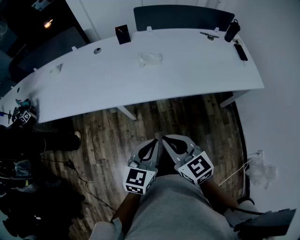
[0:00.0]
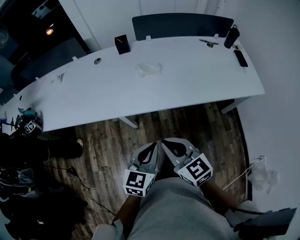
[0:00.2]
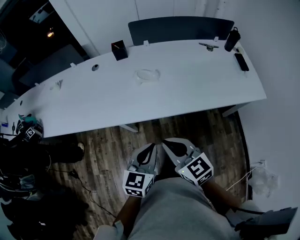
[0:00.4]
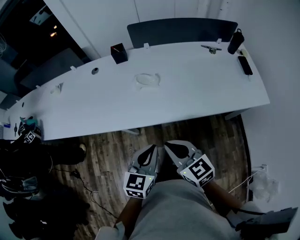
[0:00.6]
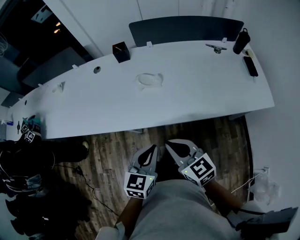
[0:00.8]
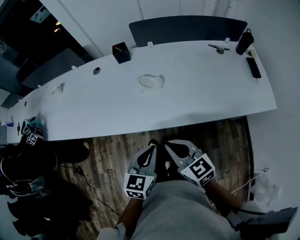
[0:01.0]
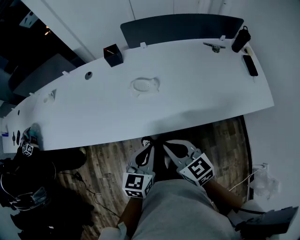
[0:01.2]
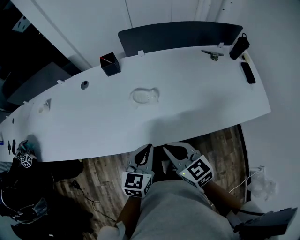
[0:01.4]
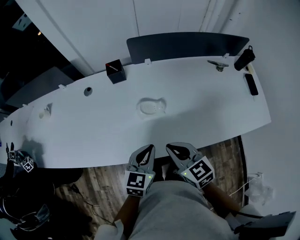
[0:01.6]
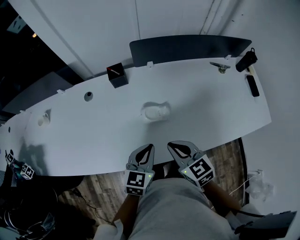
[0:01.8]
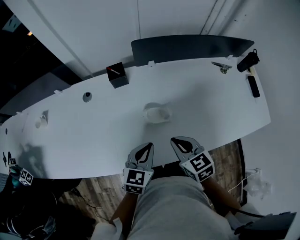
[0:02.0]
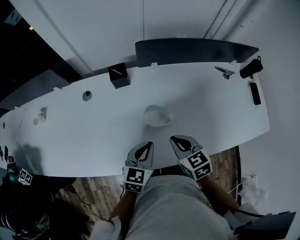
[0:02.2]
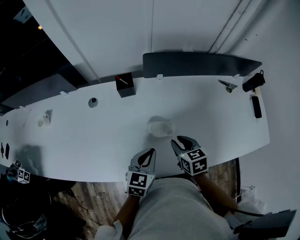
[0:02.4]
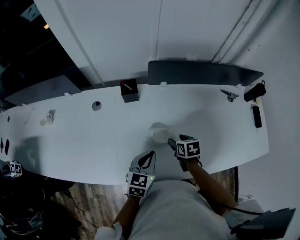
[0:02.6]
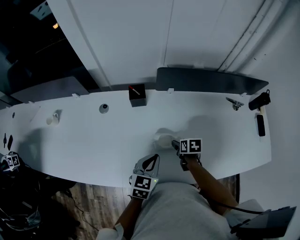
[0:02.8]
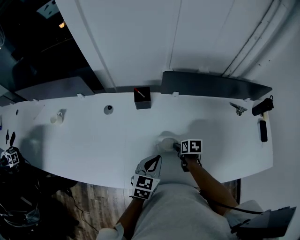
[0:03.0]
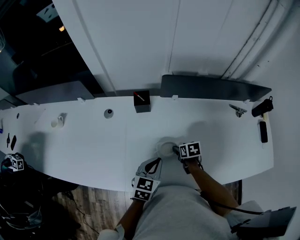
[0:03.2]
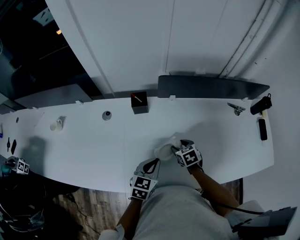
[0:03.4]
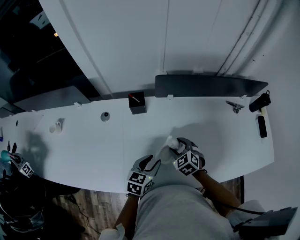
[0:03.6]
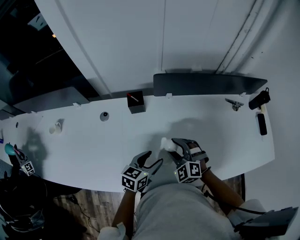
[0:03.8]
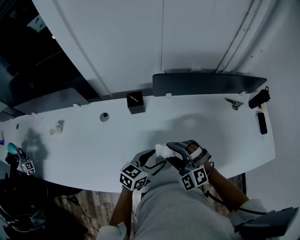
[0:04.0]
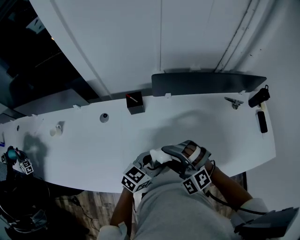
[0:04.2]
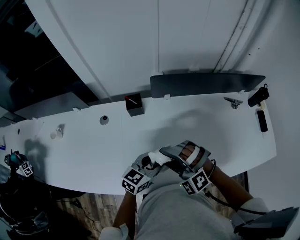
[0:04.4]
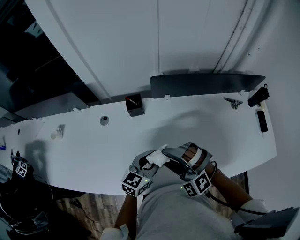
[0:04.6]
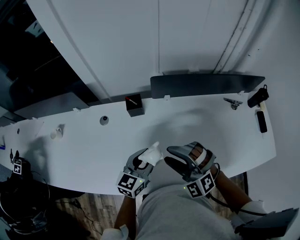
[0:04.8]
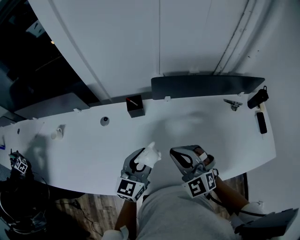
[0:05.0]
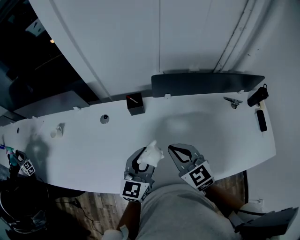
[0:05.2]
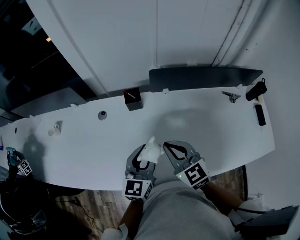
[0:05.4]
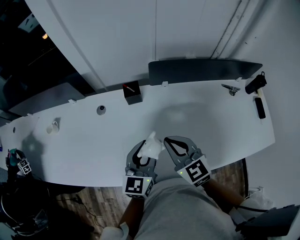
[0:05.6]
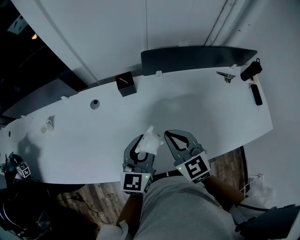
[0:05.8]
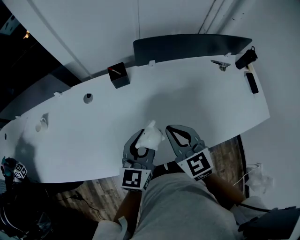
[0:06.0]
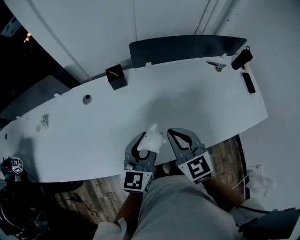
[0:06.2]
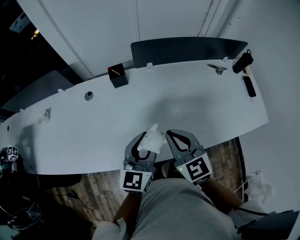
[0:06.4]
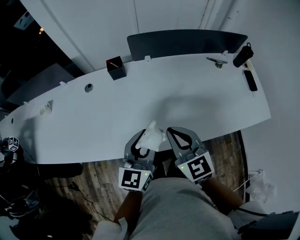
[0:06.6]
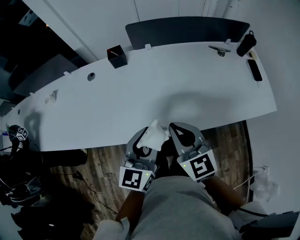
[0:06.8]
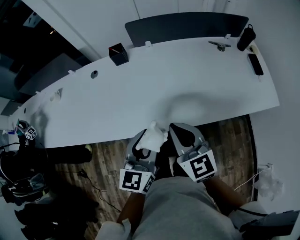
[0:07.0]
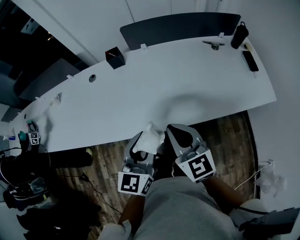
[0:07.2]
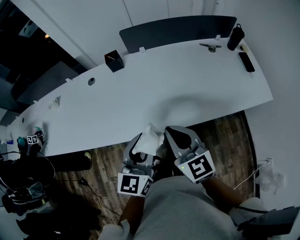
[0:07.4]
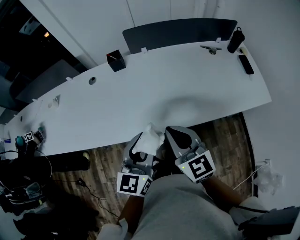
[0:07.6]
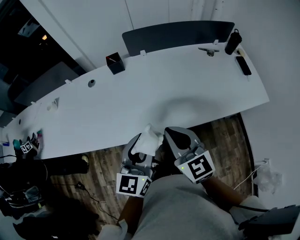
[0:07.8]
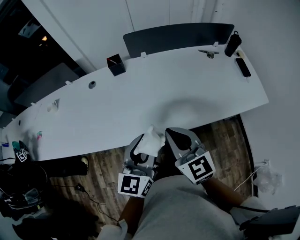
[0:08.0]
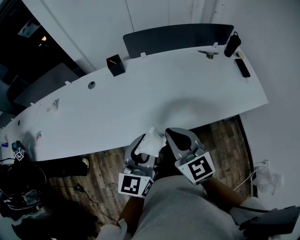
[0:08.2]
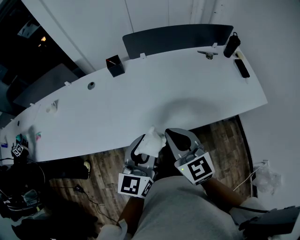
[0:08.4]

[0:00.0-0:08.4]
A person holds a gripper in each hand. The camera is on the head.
0:00.0 to 0:01.4: Both grippers travel together forward, some 25 cm.
0:01.4 to 0:02.8: The left gripper shifts roughly 20 cm forward. Meanwhile the right gripper heads forward and downward, covering roughly 30 cm, points its fingers approximately 40 degrees further downward, and opens up.
0:02.8 to 0:04.2: The left gripper changes its angle by roughly 30 degrees, and opens. The right gripper travels upward and to the left by roughly 25 cm, and twists approximately 100 degrees counterclockwise, seen from behind.
0:04.2 to 0:05.6: The right gripper twists some 60 degrees clockwise, seen from behind, and closes up; the left gripper shifts approximately 10 cm upward and to the left, and turns by about 40 degrees.
0:05.6 to 0:07.0: The grippers both shift backward and to the right by approximately 25 cm.
0:07.0 to 0:08.4: The right gripper ends up about 5 cm from where it was.

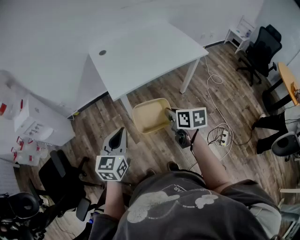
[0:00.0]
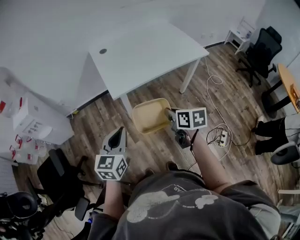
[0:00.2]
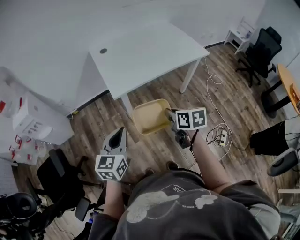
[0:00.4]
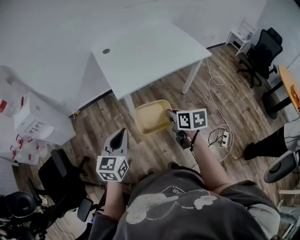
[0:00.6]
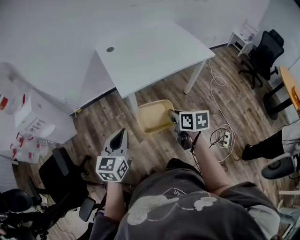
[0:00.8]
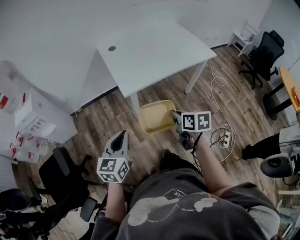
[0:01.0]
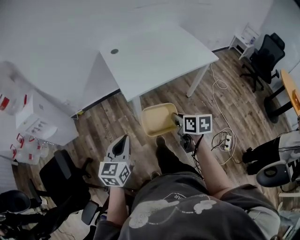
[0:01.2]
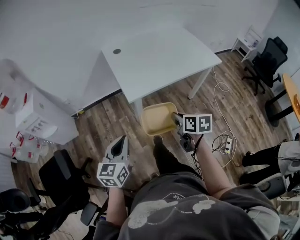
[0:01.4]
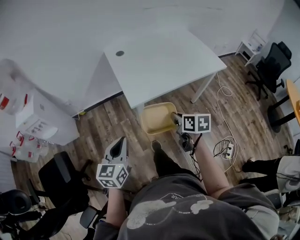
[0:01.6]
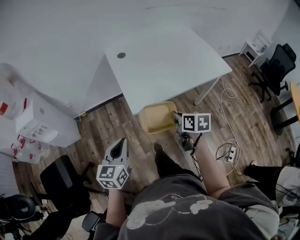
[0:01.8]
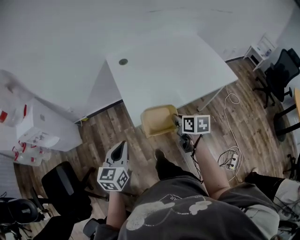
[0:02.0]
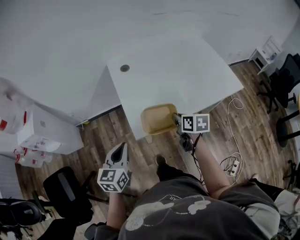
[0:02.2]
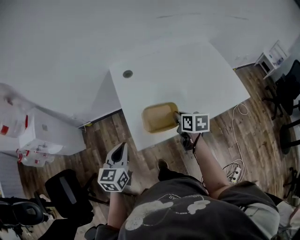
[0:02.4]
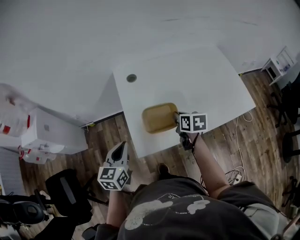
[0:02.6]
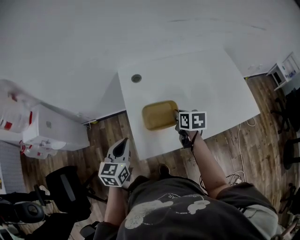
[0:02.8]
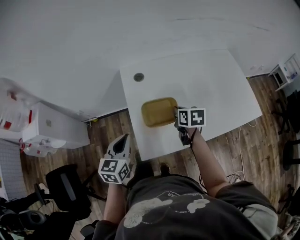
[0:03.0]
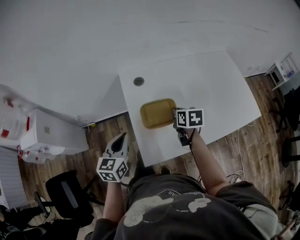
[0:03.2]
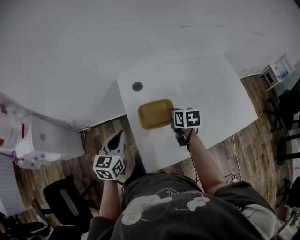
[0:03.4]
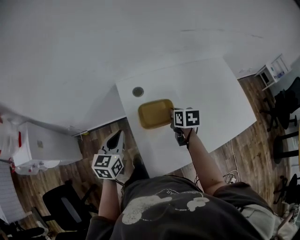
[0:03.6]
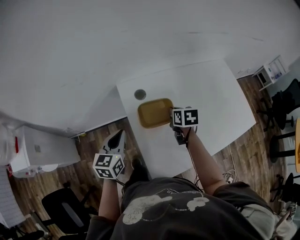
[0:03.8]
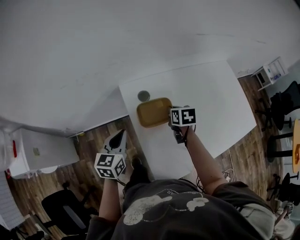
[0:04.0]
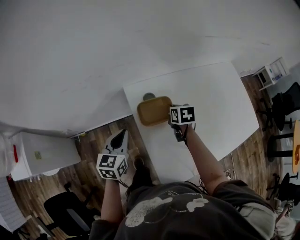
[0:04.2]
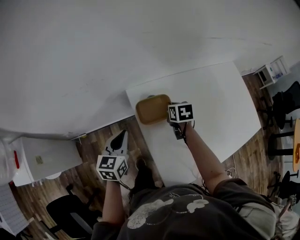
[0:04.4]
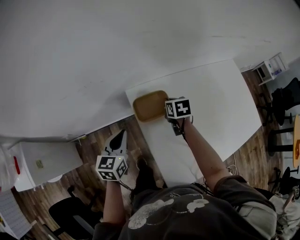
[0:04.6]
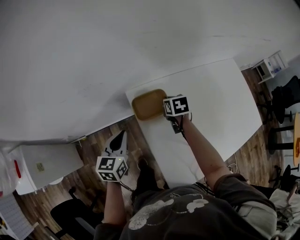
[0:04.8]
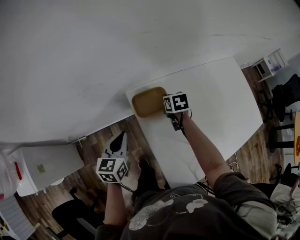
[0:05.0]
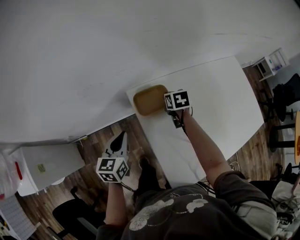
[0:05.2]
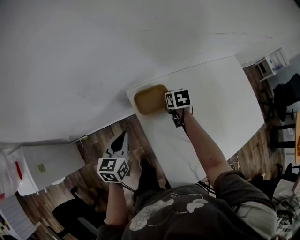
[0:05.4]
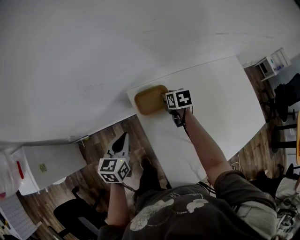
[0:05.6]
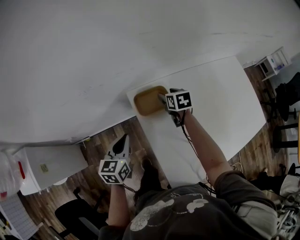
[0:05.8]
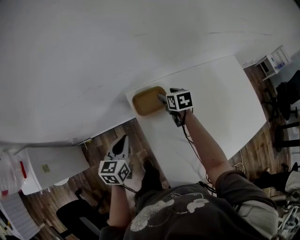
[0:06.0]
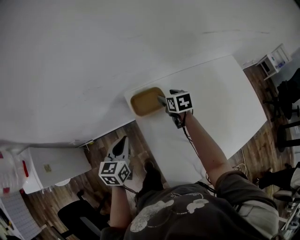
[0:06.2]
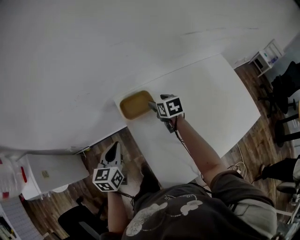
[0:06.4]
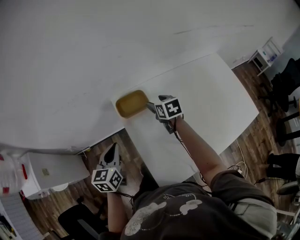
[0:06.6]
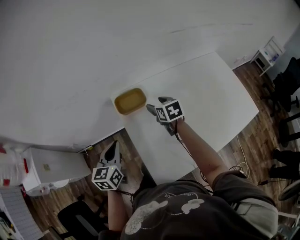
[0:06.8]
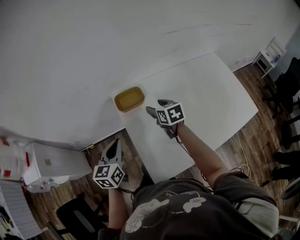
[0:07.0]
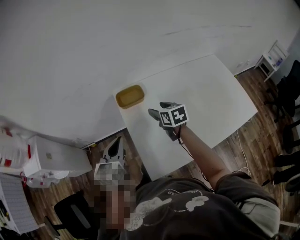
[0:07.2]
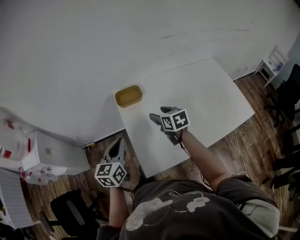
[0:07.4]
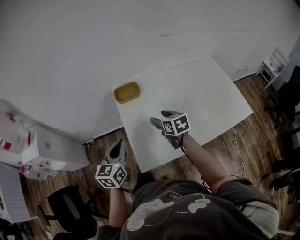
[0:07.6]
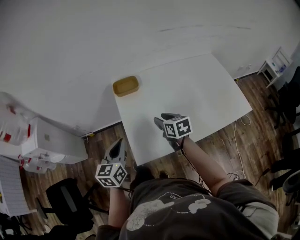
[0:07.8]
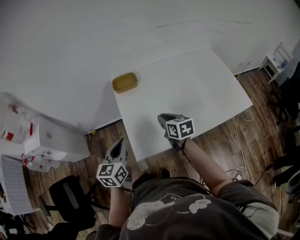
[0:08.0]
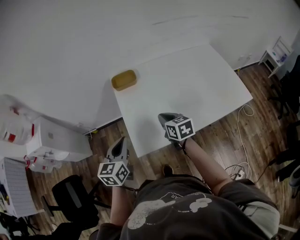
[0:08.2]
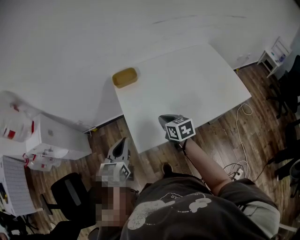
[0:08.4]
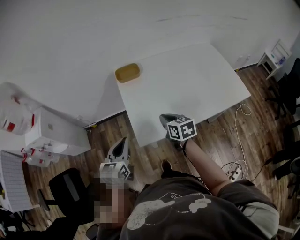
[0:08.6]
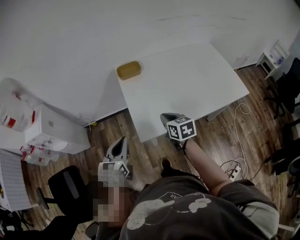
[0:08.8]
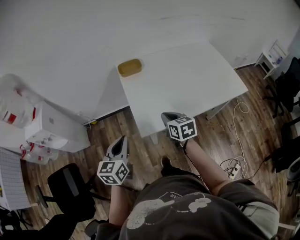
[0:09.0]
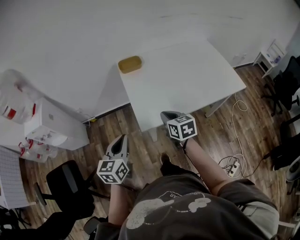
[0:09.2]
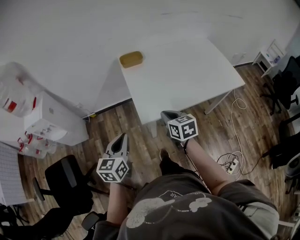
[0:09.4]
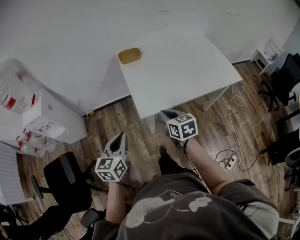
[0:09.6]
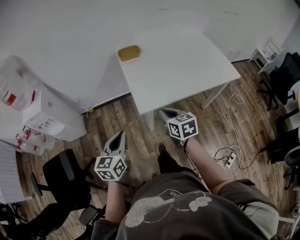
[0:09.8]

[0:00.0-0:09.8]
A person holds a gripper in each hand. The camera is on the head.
0:00.0 to 0:01.4: The grippers both shift to the left by roughly 10 cm.
0:01.4 to 0:02.8: The two grippers go about 40 cm forward.
0:02.8 to 0:04.2: The two grippers go some 30 cm forward and to the left.
0:04.2 to 0:05.6: The right gripper moves forward and to the left, about 10 cm, and opens its fingers, while the left gripper ends up about 5 cm from where it was.
0:05.6 to 0:07.0: The grippers both shift backward, upward and to the right by about 20 cm. The right gripper opens.
0:07.0 to 0:08.4: The grippers both shift backward by some 25 cm. The right gripper closes its fingers.
0:08.4 to 0:09.8: The left gripper travels backward and to the left by approximately 20 cm, while the right gripper travels backward by about 20 cm.

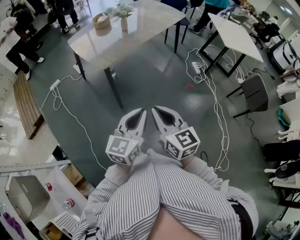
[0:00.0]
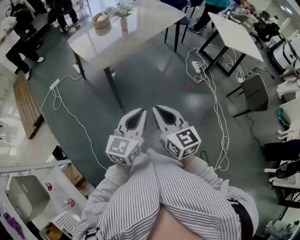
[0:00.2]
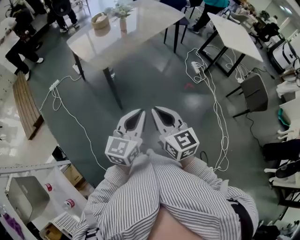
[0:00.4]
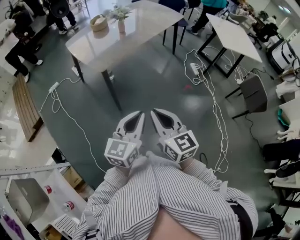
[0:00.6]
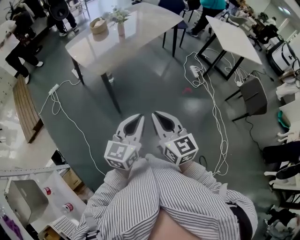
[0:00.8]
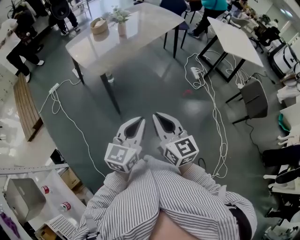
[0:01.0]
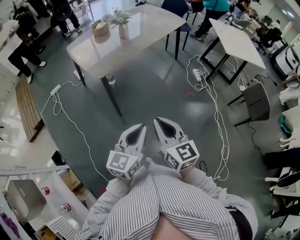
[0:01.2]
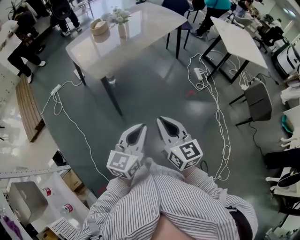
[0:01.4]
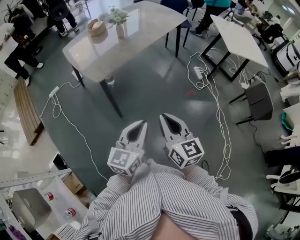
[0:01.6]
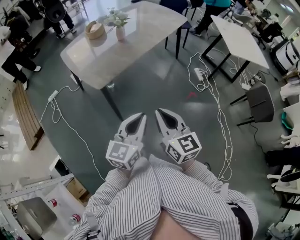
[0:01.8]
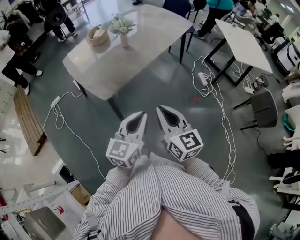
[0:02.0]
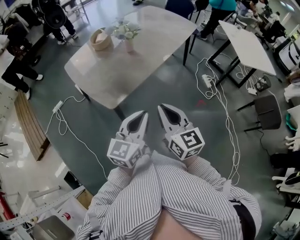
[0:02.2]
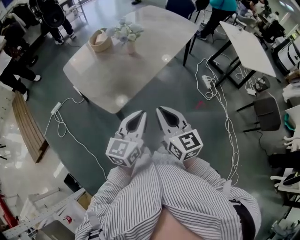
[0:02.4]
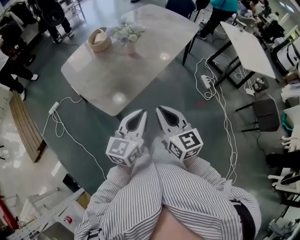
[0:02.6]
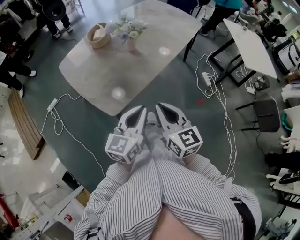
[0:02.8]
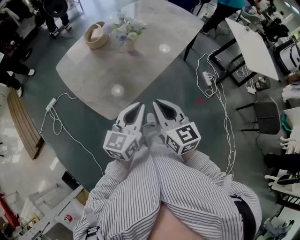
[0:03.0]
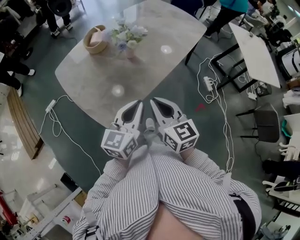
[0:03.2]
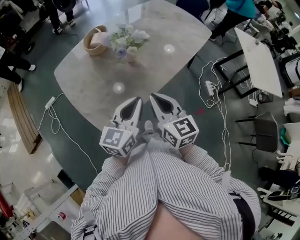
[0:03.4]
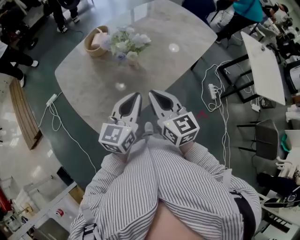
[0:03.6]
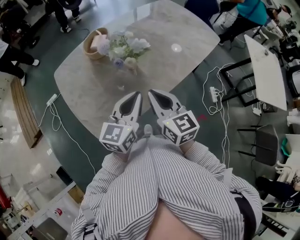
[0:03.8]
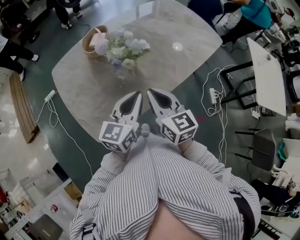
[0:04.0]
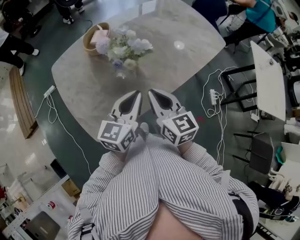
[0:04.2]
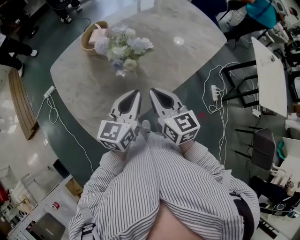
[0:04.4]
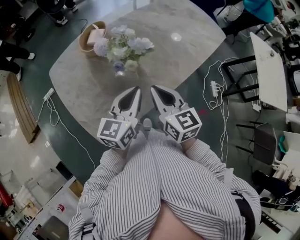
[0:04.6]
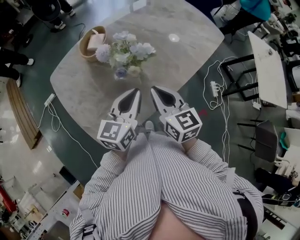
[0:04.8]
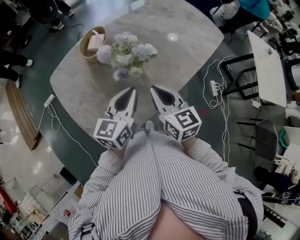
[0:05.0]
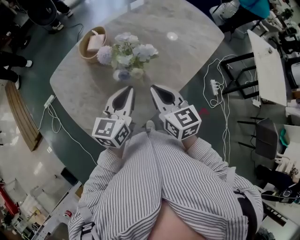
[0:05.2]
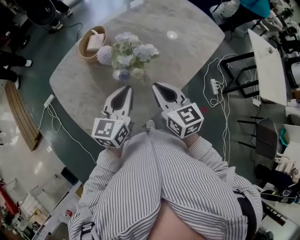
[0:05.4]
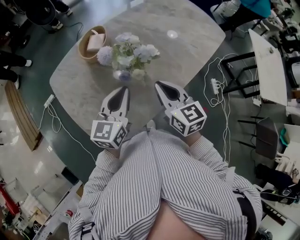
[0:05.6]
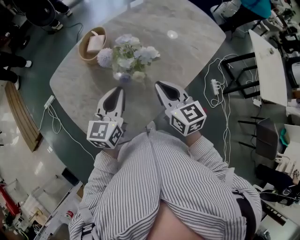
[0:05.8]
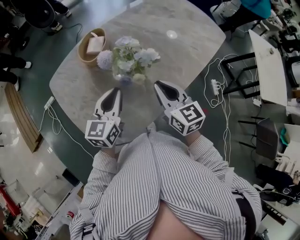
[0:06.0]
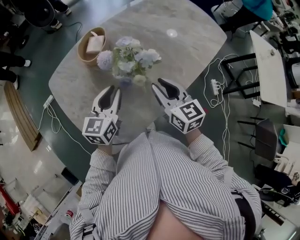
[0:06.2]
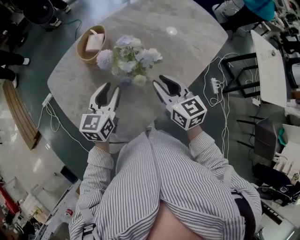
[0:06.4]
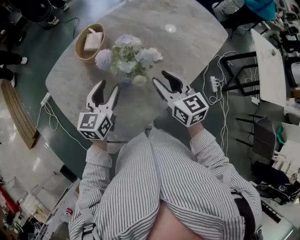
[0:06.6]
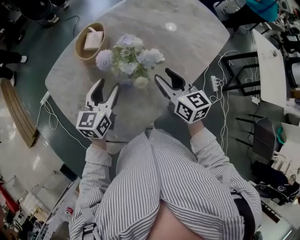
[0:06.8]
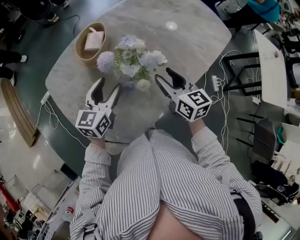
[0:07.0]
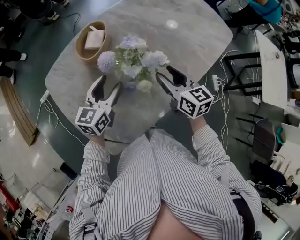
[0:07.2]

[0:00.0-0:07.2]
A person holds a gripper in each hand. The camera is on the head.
0:00.0 to 0:01.4: The left gripper ends up some 5 cm from where it was. Meanwhile the right gripper moves to the right, about 5 cm.
0:01.4 to 0:02.8: The two grippers go roughly 40 cm forward and to the left.
0:02.8 to 0:04.4: Both grippers travel together forward, roughly 30 cm.
0:04.4 to 0:05.8: The right gripper heads forward, covering roughly 5 cm, while the left gripper is displaced to the left and forward by approximately 10 cm.
0:05.8 to 0:07.2: The right gripper heads forward, covering roughly 10 cm, and opens up; the left gripper goes roughly 10 cm forward and downward, and opens its fingers.
